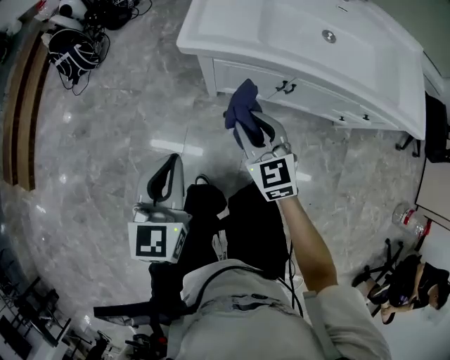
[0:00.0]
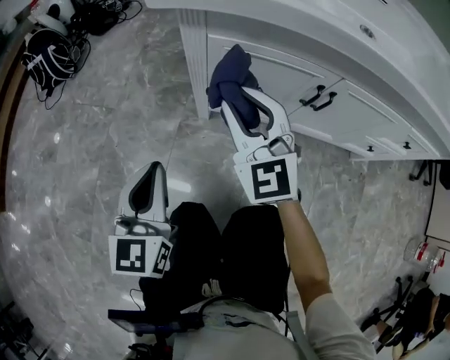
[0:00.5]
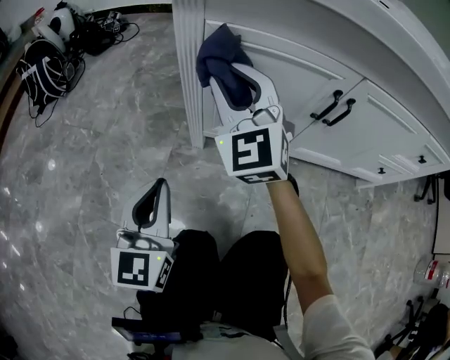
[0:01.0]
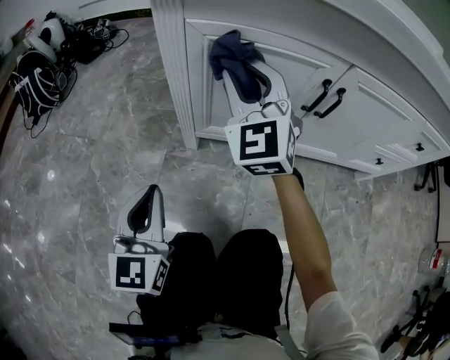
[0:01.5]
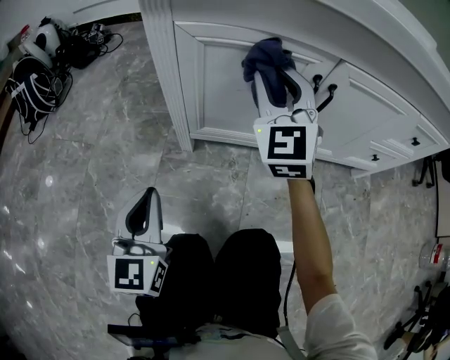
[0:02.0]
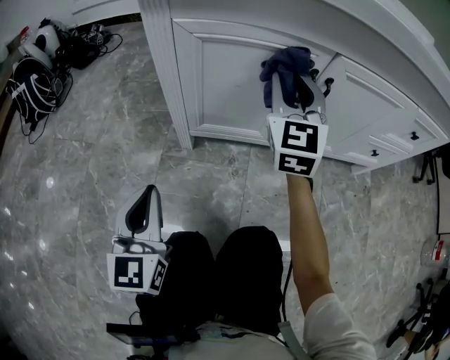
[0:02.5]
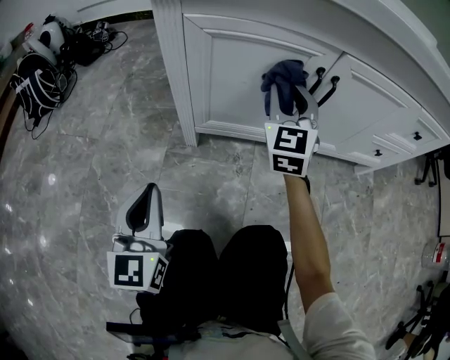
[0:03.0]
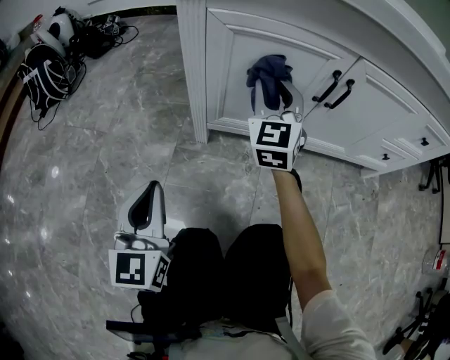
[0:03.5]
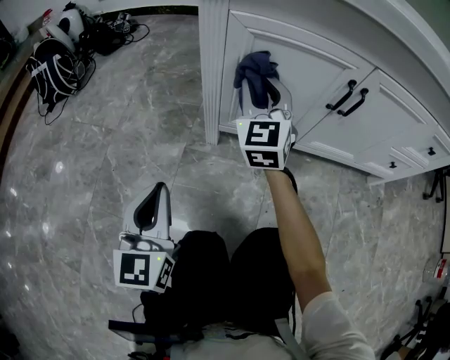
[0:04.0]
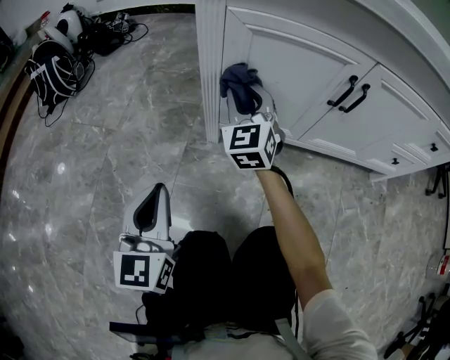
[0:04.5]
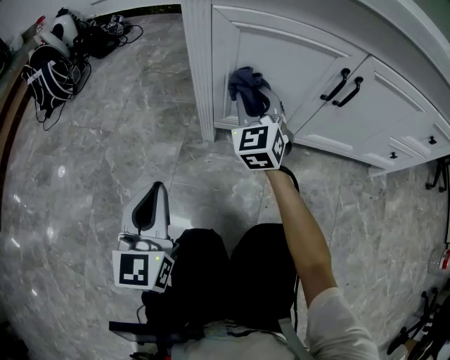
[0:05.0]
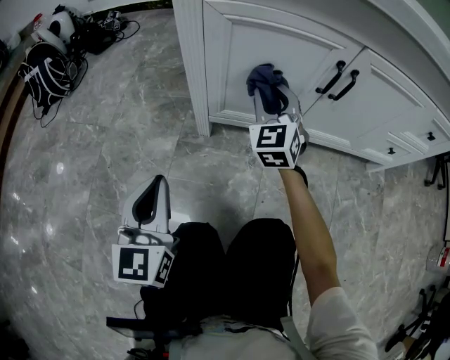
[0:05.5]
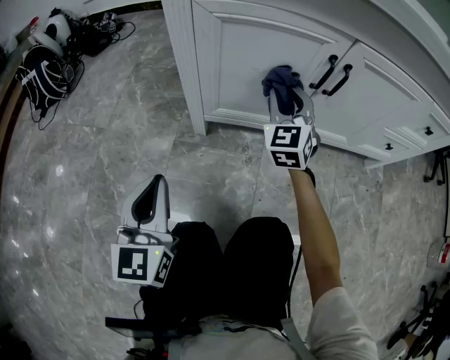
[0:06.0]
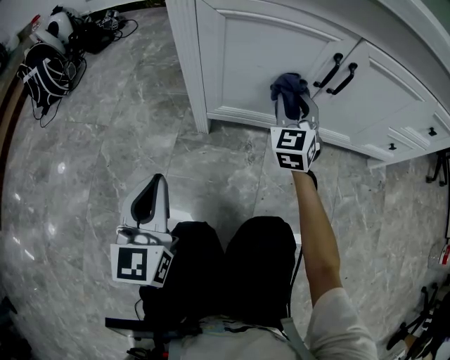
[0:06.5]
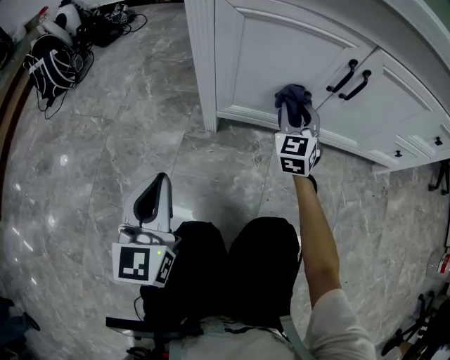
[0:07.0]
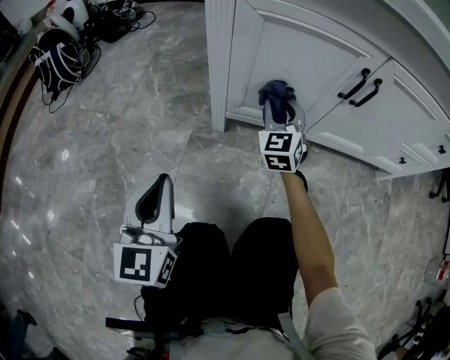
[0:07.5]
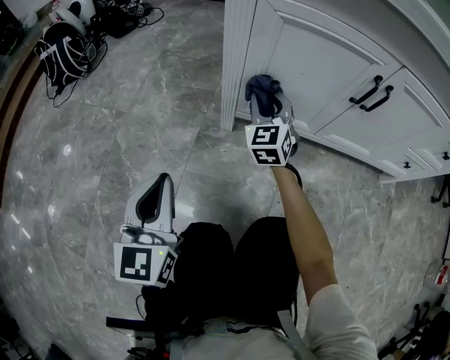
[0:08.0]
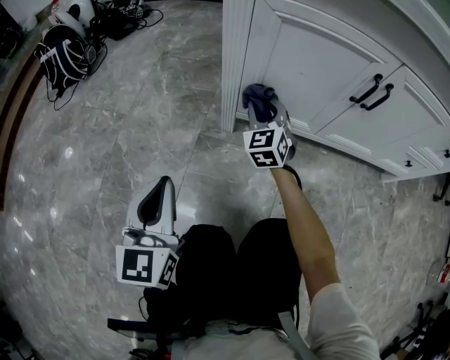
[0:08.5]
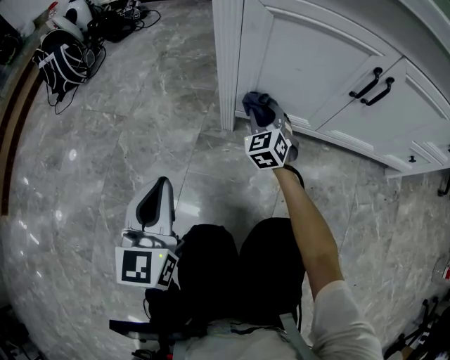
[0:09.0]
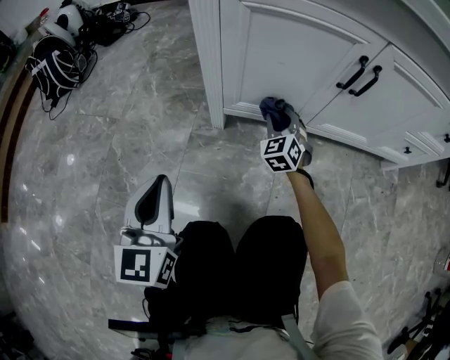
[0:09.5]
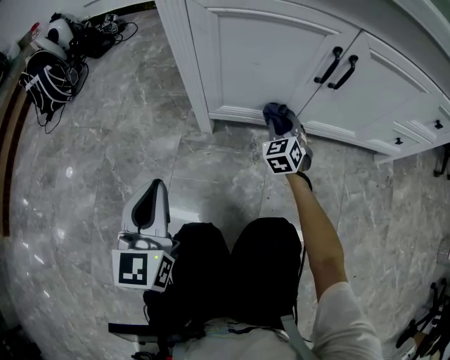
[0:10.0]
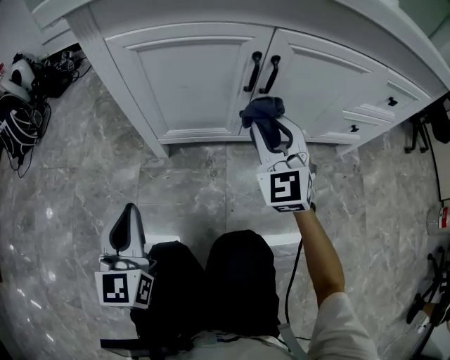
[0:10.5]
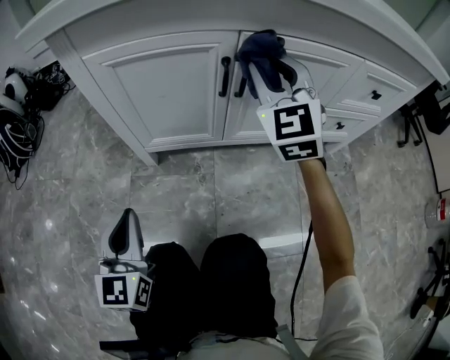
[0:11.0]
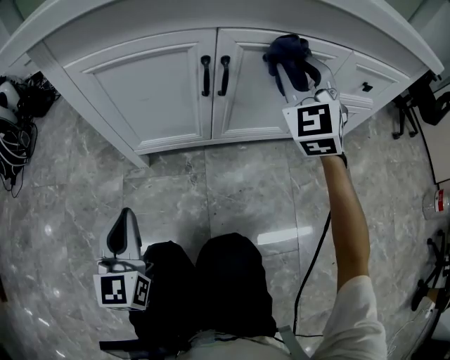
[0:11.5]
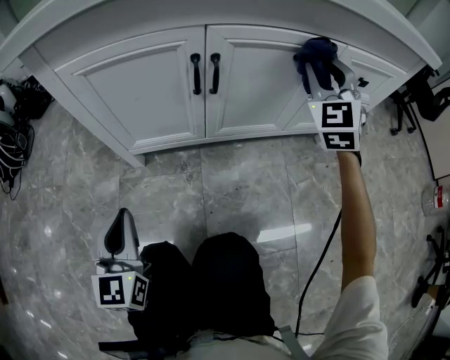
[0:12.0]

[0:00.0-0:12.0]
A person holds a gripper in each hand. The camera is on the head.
0:00.0 to 0:02.0: The right gripper goes roughly 30 cm downward and forward, and changes its angle by approximately 40 degrees; the left gripper travels downward by approximately 40 cm.
0:02.0 to 0:04.0: The left gripper moves about 5 cm. Meanwhile the right gripper heads to the left and downward, covering some 10 cm.
0:04.0 to 0:06.0: The right gripper shifts about 15 cm to the right and downward.
0:06.0 to 0:08.0: The left gripper moves to the left, some 5 cm. Meanwhile the right gripper travels to the left and downward by some 15 cm.
0:08.0 to 0:10.0: The left gripper is displaced to the right by roughly 5 cm. Meanwhile the right gripper goes approximately 20 cm to the right and downward.
0:10.0 to 0:12.0: The right gripper is displaced upward and to the right by roughly 40 cm, and turns by roughly 30 degrees; the left gripper is displaced to the right by about 10 cm.

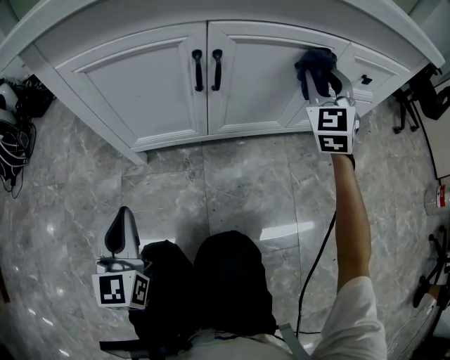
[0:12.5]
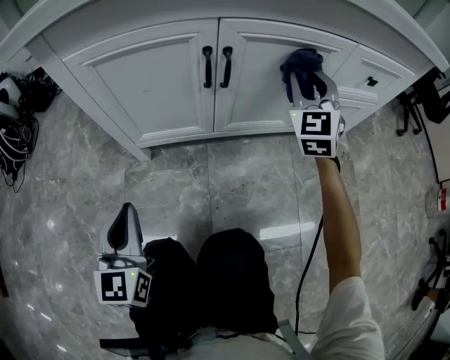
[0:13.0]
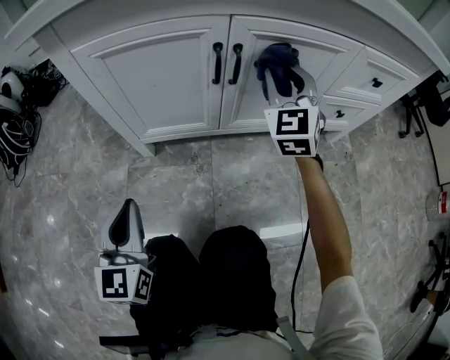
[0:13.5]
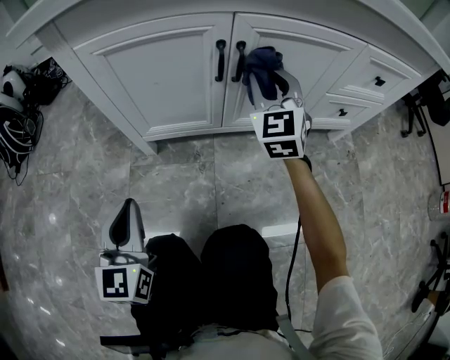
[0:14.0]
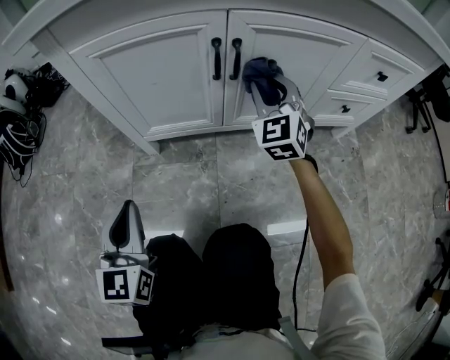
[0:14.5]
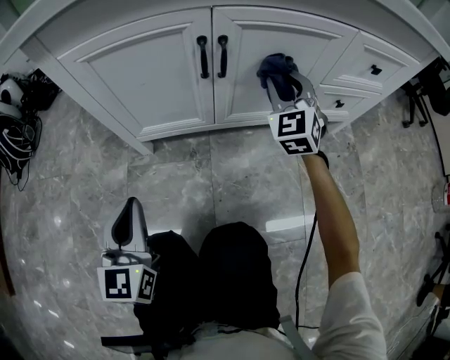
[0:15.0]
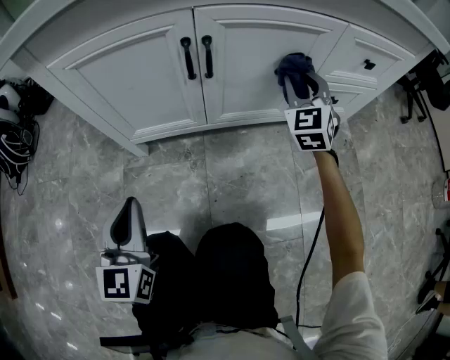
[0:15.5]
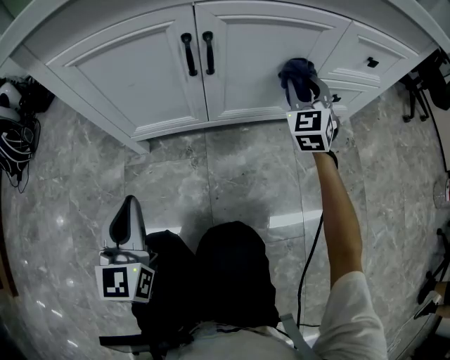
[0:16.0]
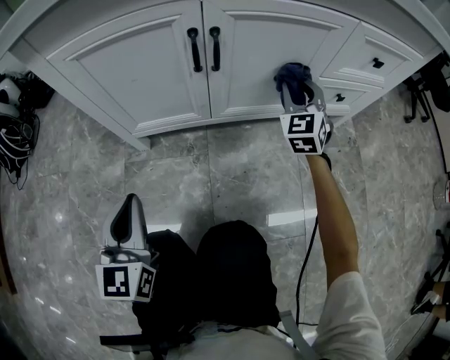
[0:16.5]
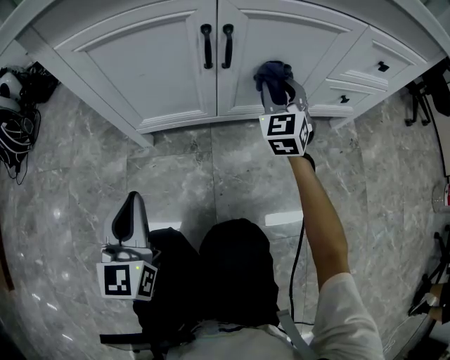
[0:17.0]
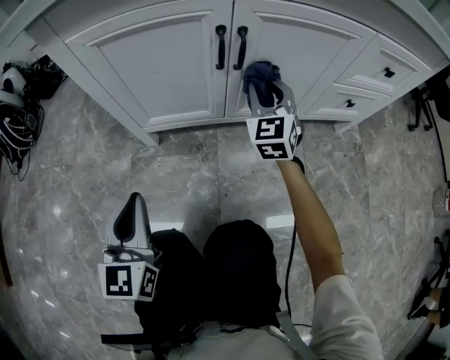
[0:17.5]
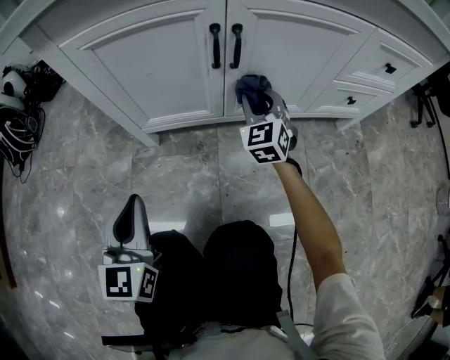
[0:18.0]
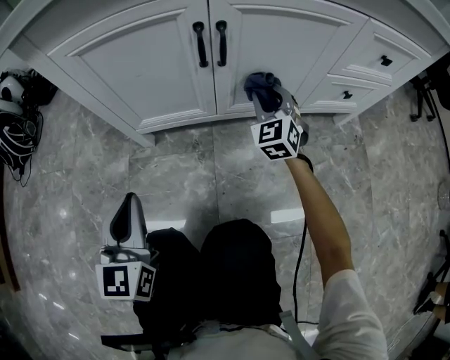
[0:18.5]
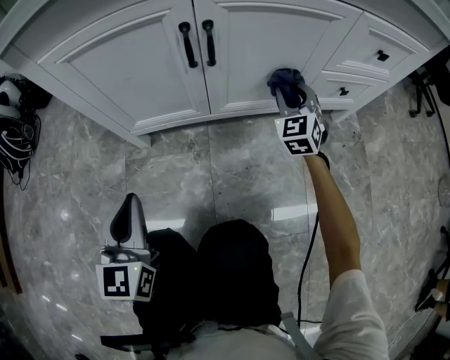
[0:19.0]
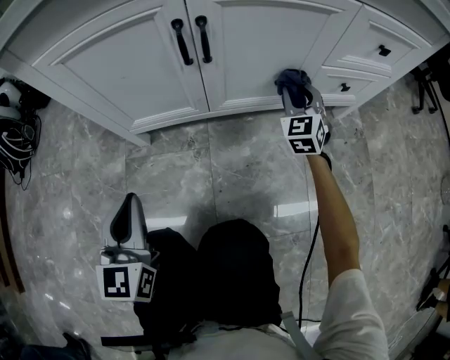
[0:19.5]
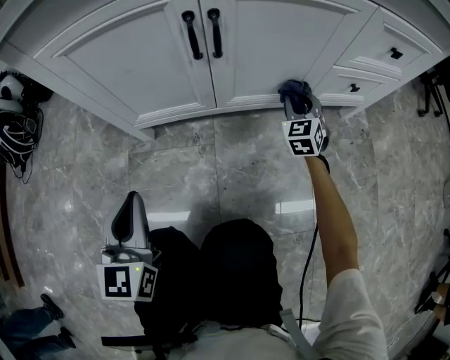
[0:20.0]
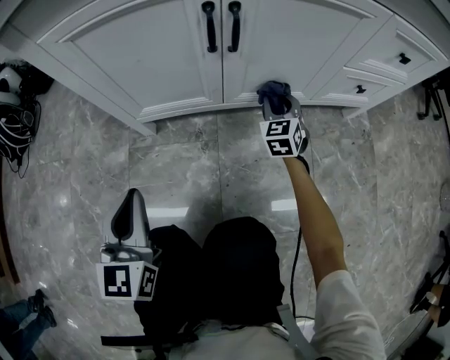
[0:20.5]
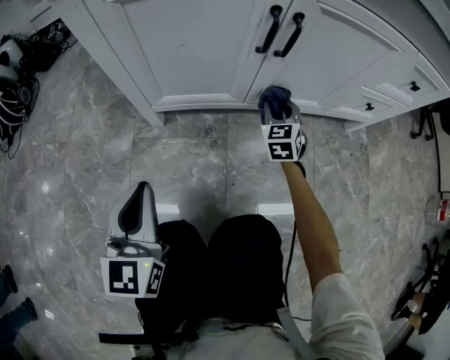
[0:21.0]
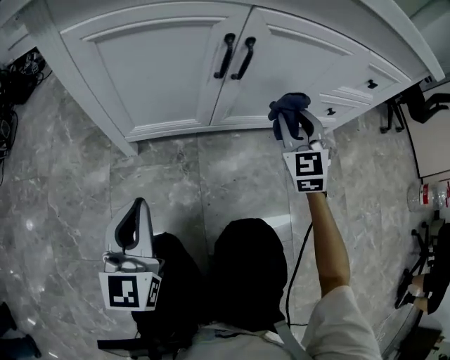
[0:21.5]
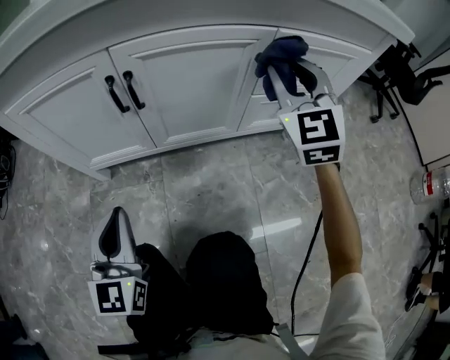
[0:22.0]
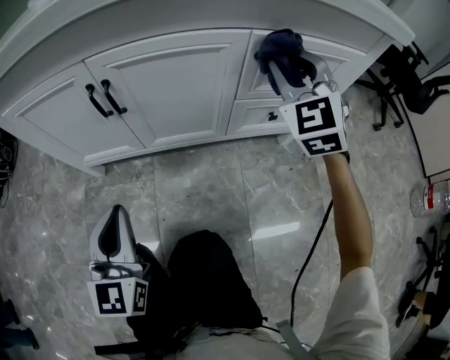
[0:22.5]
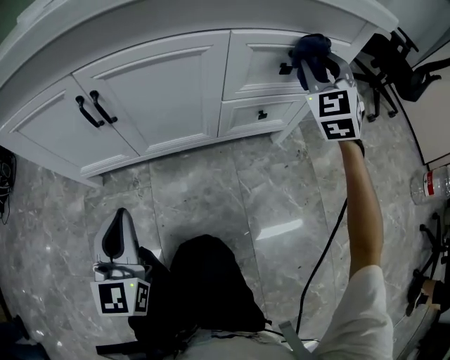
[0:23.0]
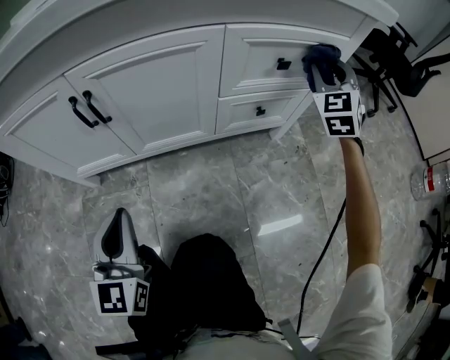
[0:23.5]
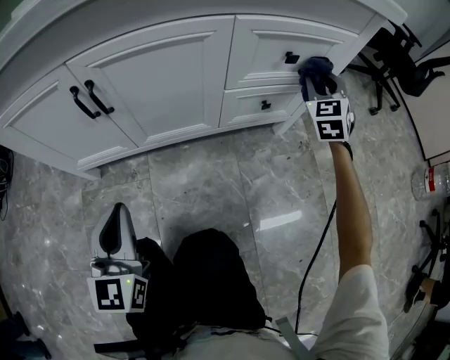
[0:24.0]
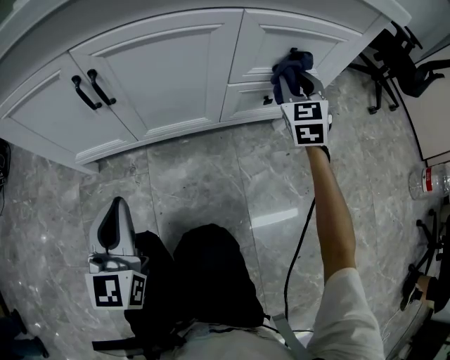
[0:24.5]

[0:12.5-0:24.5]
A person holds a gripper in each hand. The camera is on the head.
0:12.5 to 0:14.5: The right gripper moves to the left and downward, roughly 20 cm.
0:14.5 to 0:16.5: The right gripper heads to the right, covering some 15 cm.
0:16.5 to 0:18.5: The right gripper travels to the left and downward by about 10 cm.
0:18.5 to 0:20.5: The right gripper is displaced downward by some 10 cm, and moves roughly 10 cm to the right and comes back.
0:20.5 to 0:22.5: The left gripper goes roughly 20 cm to the right; the right gripper heads upward and to the right, covering some 40 cm, and changes its angle by roughly 30 degrees.
0:22.5 to 0:24.5: The right gripper is displaced downward and to the right by roughly 15 cm, and turns by roughly 20 degrees.

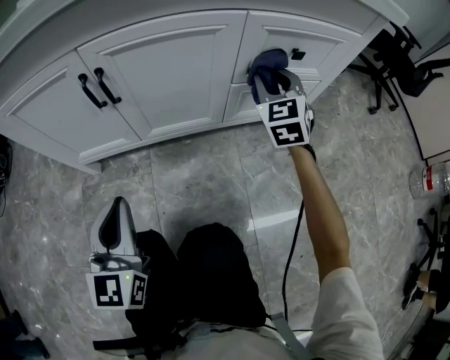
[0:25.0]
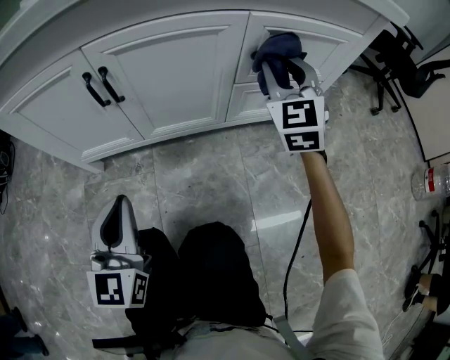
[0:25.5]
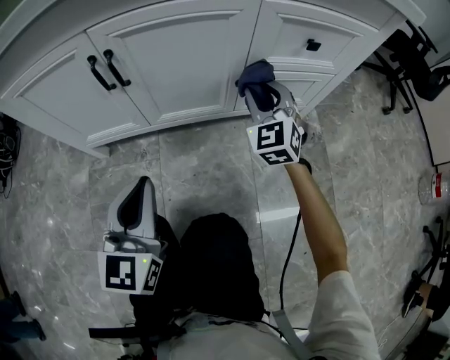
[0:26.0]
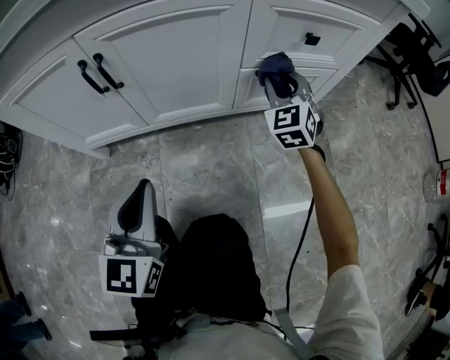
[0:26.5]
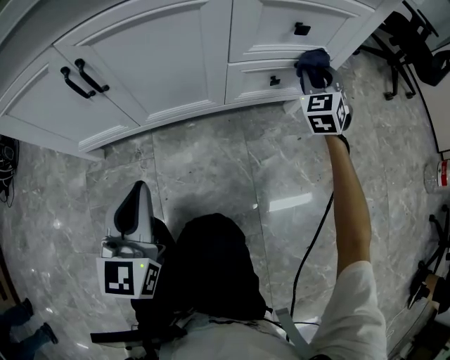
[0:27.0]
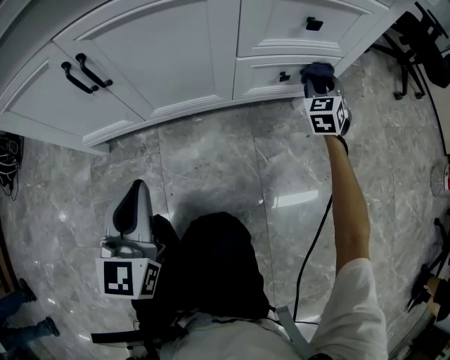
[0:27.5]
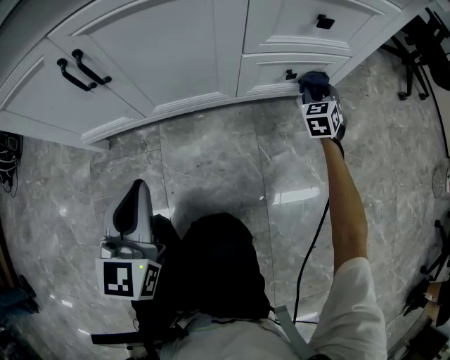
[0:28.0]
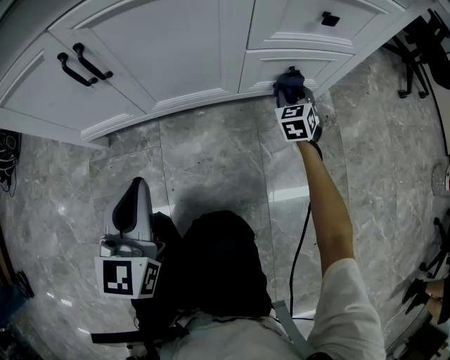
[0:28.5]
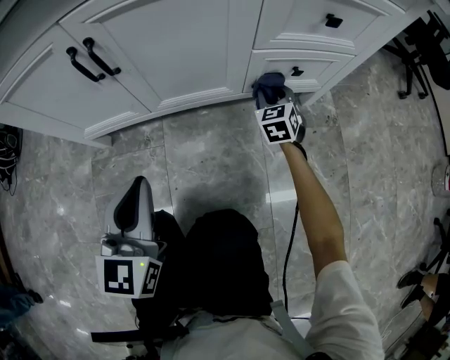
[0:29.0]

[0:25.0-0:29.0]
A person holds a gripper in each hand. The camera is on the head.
0:25.0 to 0:27.0: The left gripper is displaced to the right by about 5 cm; the right gripper shifts roughly 15 cm to the right and downward.
0:27.0 to 0:29.0: The right gripper shifts about 20 cm downward and to the left, and rotates roughly 20 degrees.
